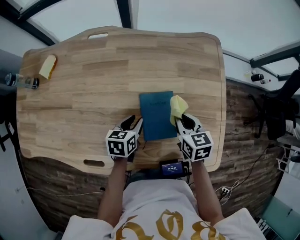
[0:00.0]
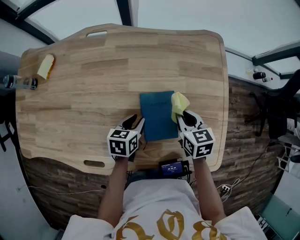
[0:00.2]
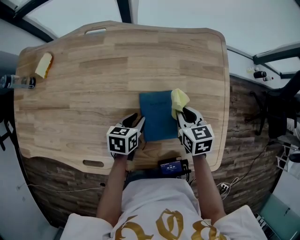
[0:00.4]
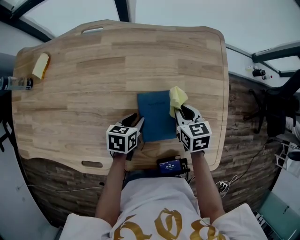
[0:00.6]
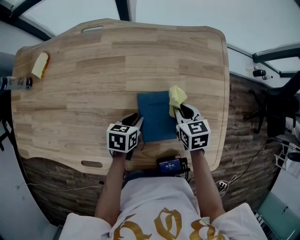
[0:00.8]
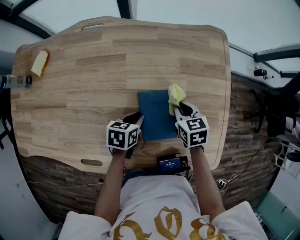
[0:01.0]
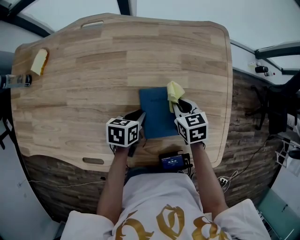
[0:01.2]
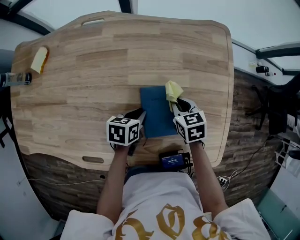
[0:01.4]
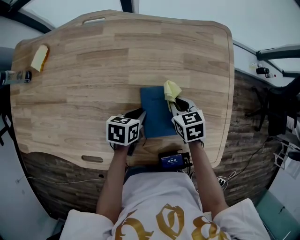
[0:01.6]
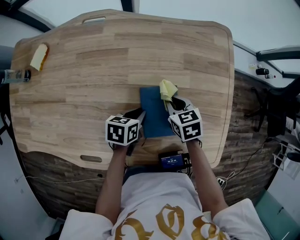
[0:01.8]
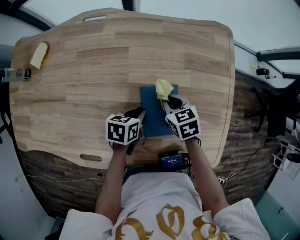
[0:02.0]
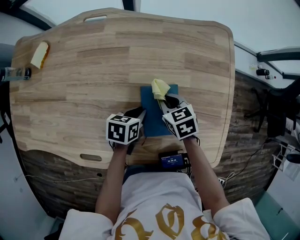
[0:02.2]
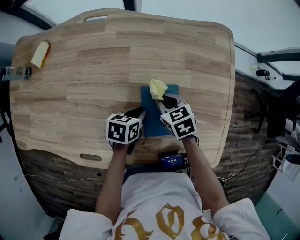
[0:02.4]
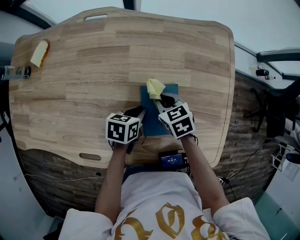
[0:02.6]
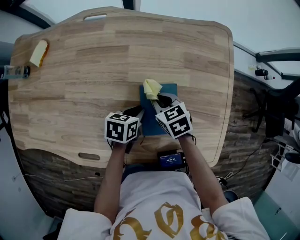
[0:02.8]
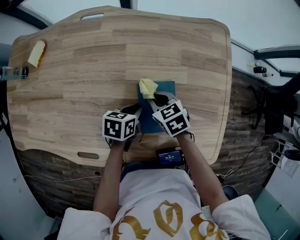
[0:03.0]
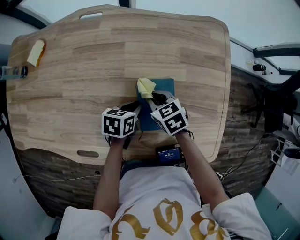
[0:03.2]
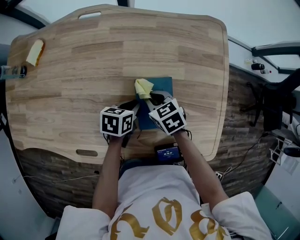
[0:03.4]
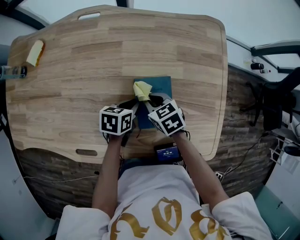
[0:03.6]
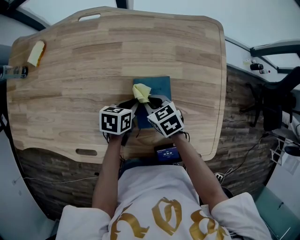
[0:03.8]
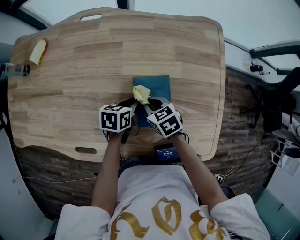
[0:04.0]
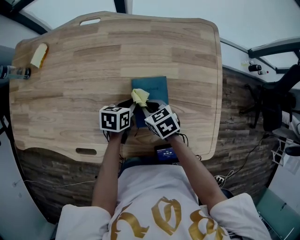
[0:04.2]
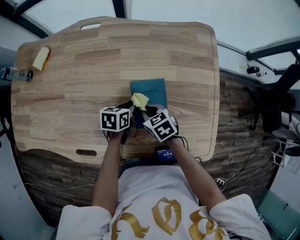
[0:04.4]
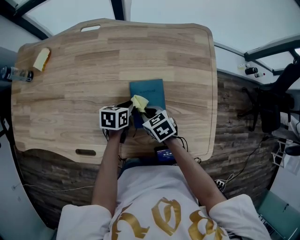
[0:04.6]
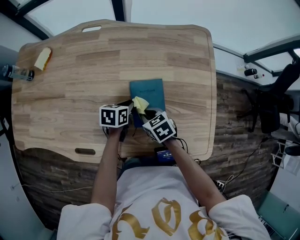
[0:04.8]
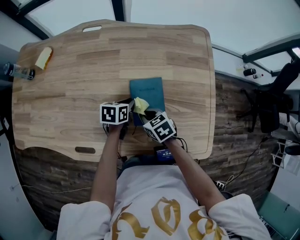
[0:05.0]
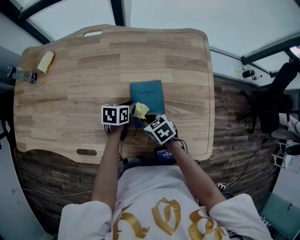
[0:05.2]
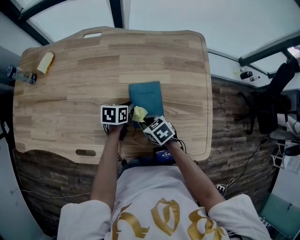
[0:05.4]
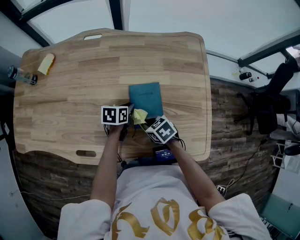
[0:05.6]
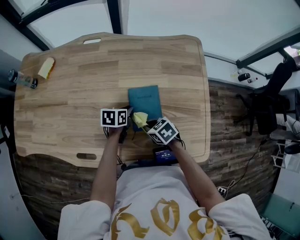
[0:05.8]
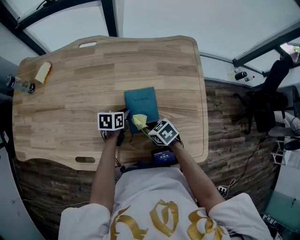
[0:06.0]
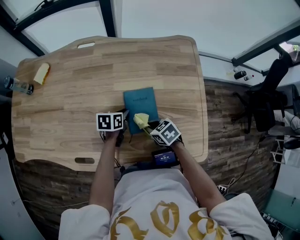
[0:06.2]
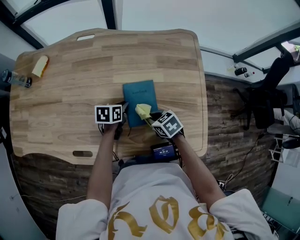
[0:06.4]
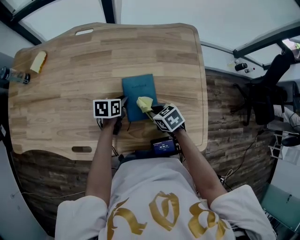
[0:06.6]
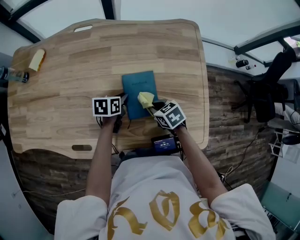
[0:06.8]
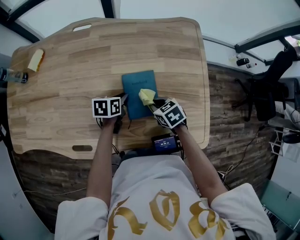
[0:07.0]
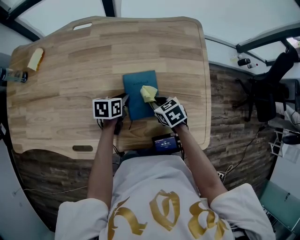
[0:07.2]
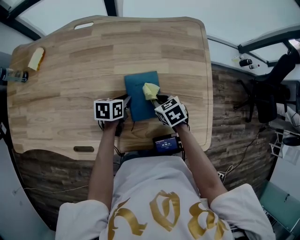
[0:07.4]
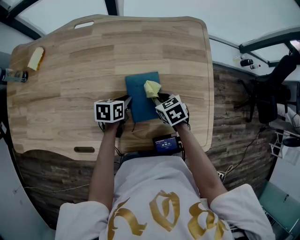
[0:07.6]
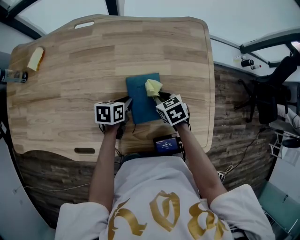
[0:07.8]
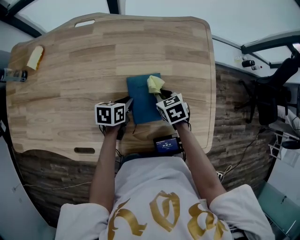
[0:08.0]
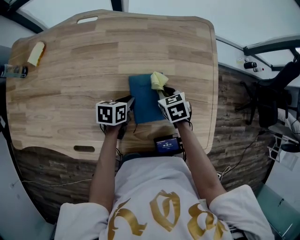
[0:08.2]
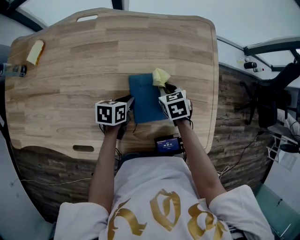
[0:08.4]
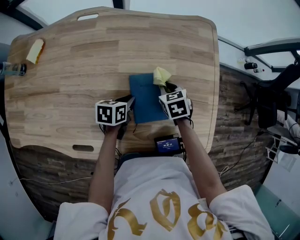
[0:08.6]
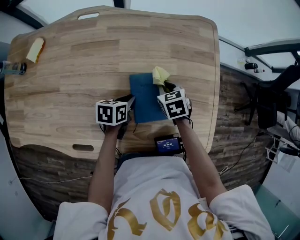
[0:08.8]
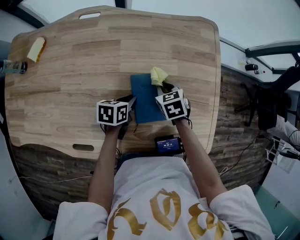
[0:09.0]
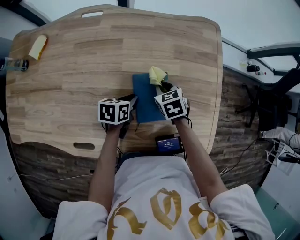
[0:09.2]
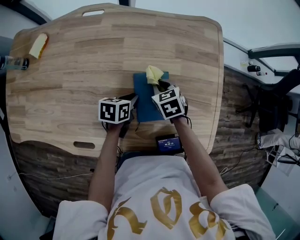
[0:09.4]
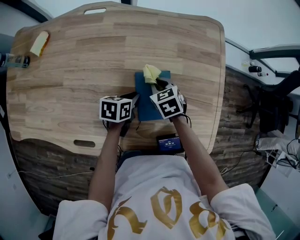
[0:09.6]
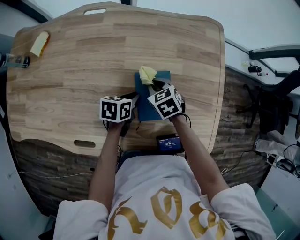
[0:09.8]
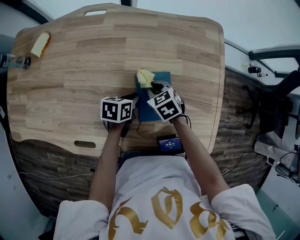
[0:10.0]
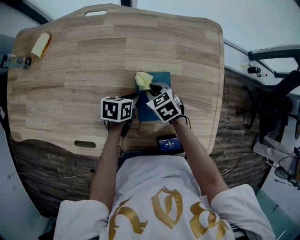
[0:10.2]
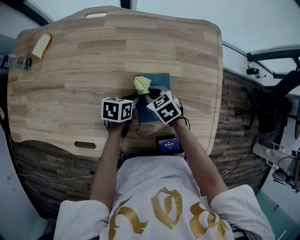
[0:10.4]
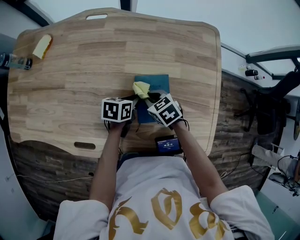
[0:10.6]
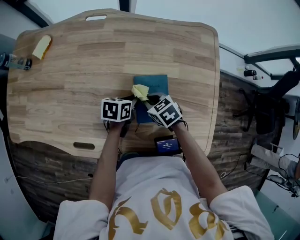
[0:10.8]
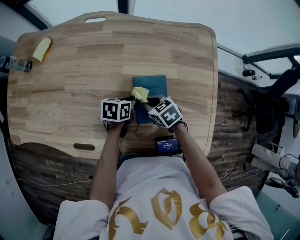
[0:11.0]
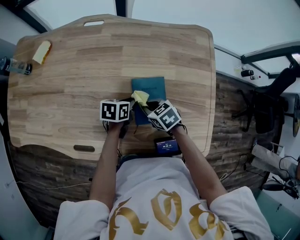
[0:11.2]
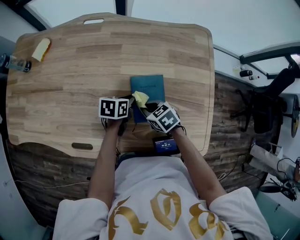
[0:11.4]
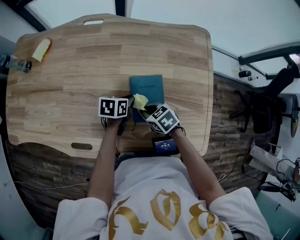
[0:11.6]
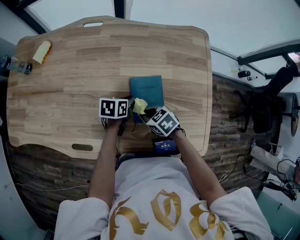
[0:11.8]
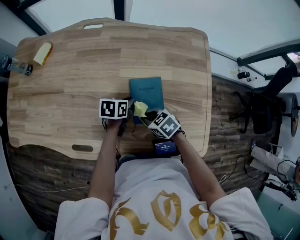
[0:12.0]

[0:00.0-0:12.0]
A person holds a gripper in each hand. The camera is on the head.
0:00.0 to 0:01.6: The right gripper travels downward by about 5 cm.
0:01.6 to 0:03.0: The right gripper travels to the left by some 10 cm.
0:03.0 to 0:04.4: The right gripper heads backward, covering about 5 cm.
0:04.4 to 0:06.0: The right gripper shifts some 5 cm backward.
0:06.0 to 0:07.6: The right gripper shifts about 10 cm forward and to the right.
0:07.6 to 0:09.0: The right gripper shifts roughly 5 cm forward.
0:09.0 to 0:10.4: The right gripper moves to the left and backward, roughly 10 cm.
0:10.4 to 0:12.0: The right gripper changes place by roughly 10 cm.

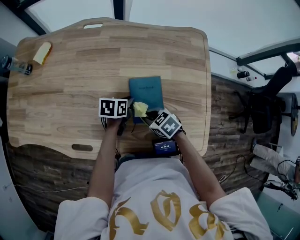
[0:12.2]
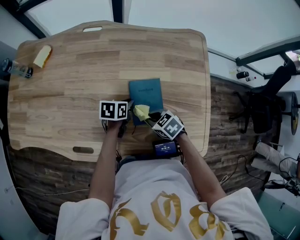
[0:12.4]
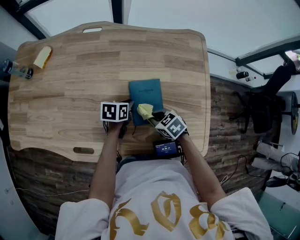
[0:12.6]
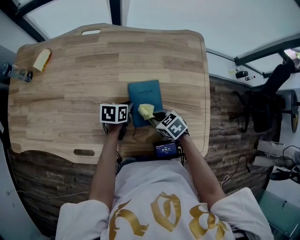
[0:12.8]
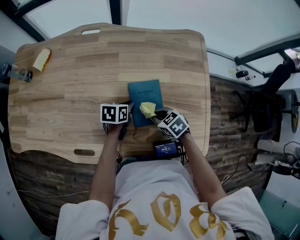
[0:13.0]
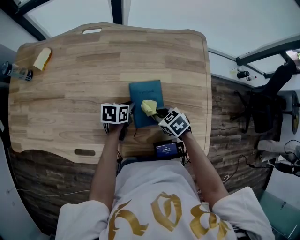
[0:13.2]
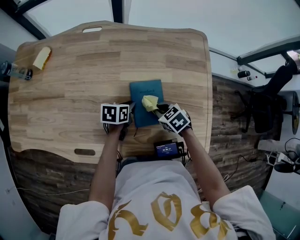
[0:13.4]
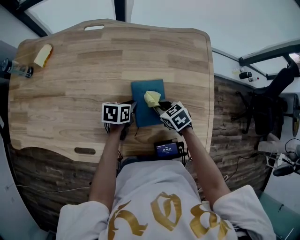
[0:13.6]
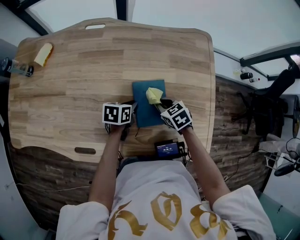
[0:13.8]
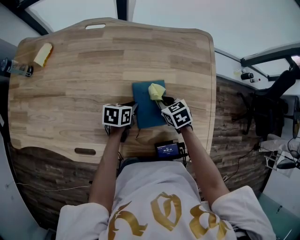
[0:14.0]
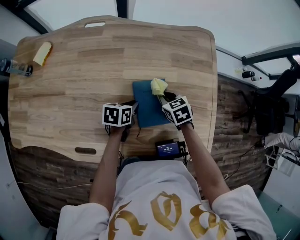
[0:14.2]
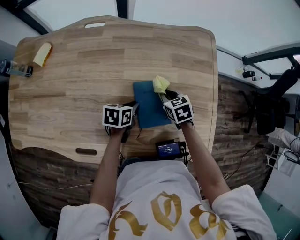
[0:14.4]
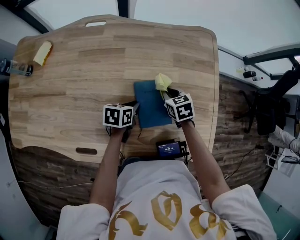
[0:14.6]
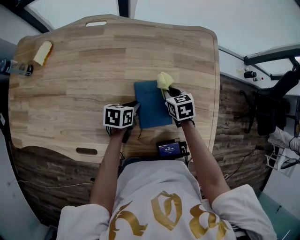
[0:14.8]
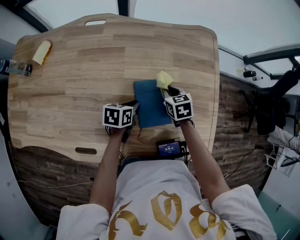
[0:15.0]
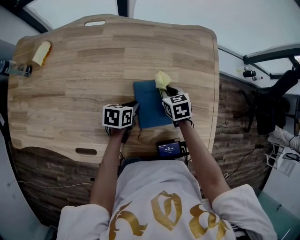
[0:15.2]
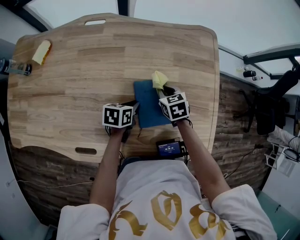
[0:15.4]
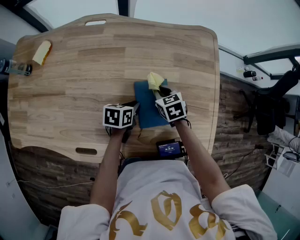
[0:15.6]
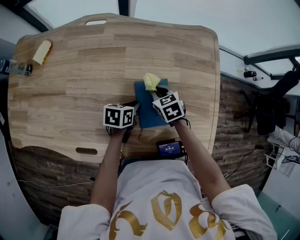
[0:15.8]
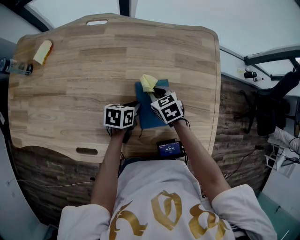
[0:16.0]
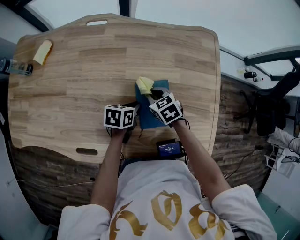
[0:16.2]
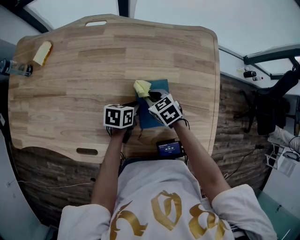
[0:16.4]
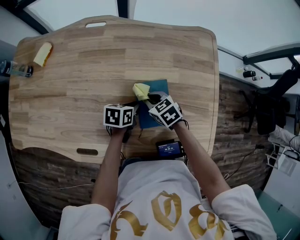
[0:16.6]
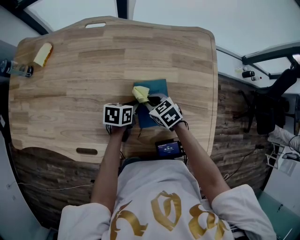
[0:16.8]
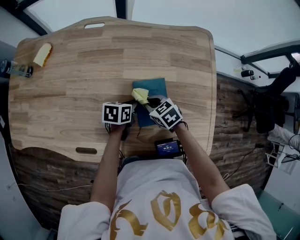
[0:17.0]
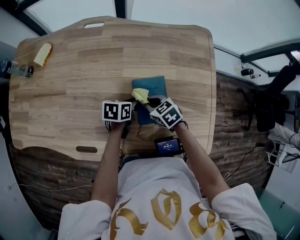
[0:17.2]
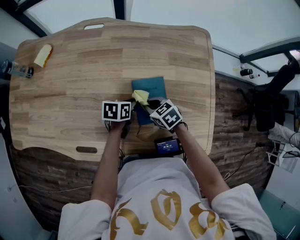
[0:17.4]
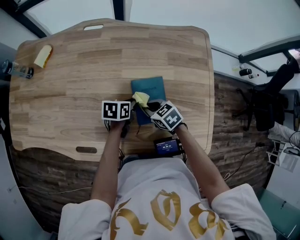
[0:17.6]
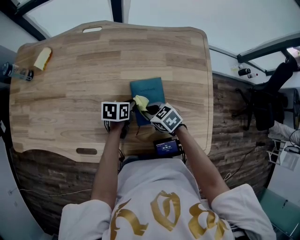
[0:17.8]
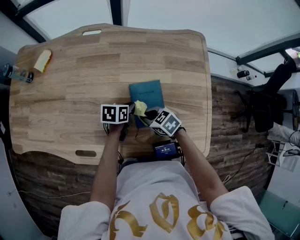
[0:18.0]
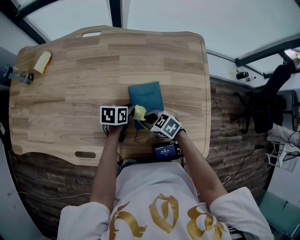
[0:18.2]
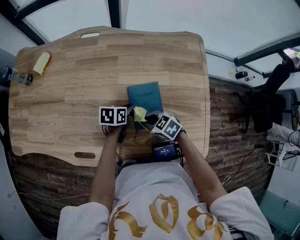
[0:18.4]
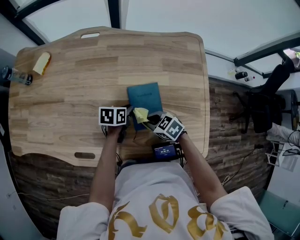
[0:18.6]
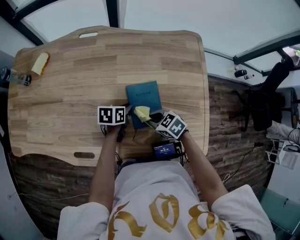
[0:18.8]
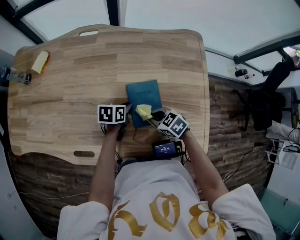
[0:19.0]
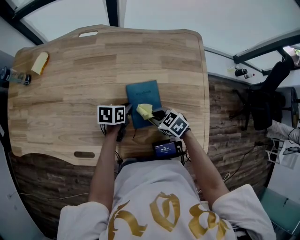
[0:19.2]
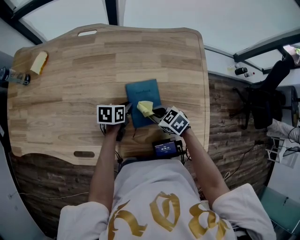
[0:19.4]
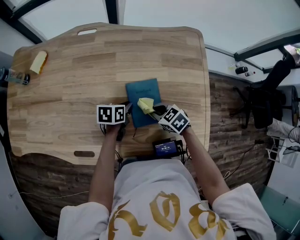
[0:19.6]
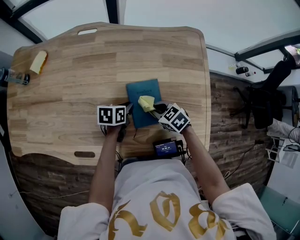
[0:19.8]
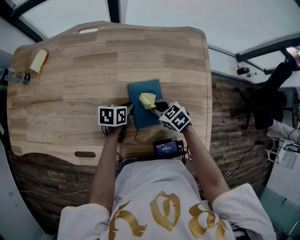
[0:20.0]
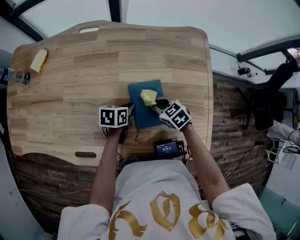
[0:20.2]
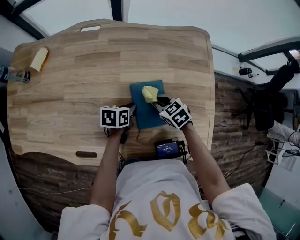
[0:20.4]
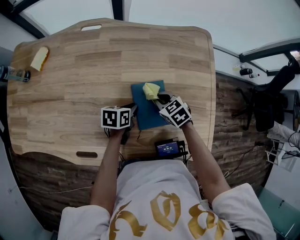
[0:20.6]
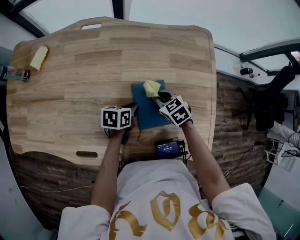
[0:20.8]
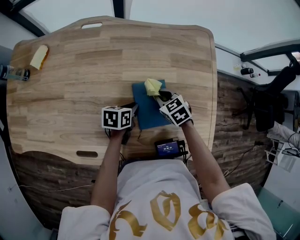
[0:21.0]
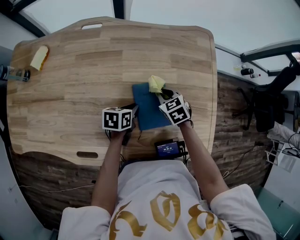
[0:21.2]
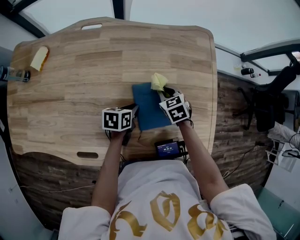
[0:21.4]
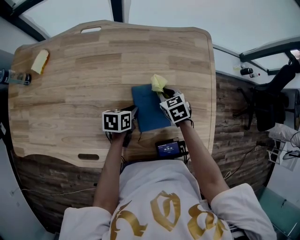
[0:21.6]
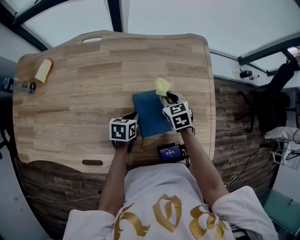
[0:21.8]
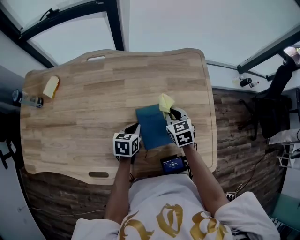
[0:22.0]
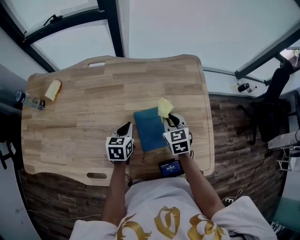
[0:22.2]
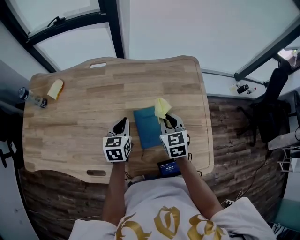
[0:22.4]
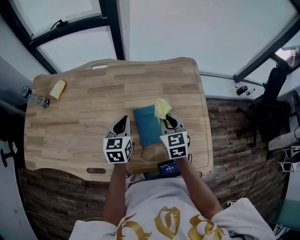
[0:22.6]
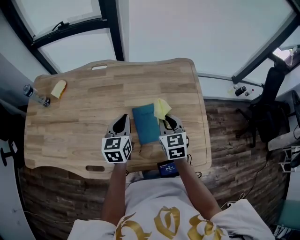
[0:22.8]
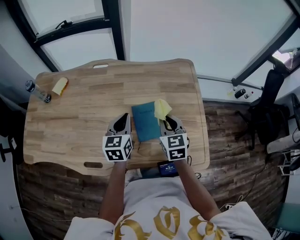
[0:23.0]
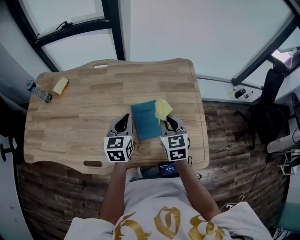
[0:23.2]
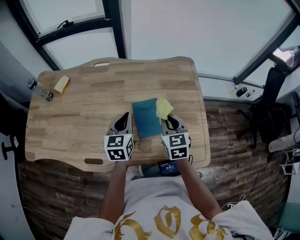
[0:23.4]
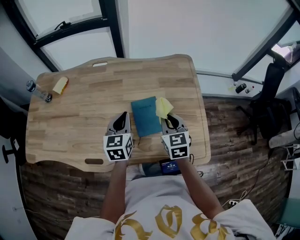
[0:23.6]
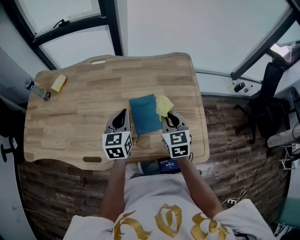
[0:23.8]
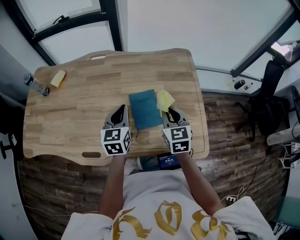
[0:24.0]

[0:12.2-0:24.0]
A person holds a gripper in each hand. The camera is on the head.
0:12.2 to 0:13.6: The right gripper shifts by about 10 cm.
0:13.6 to 0:15.2: The right gripper shifts some 10 cm forward, and turns by about 20 degrees.
0:15.2 to 0:16.6: The right gripper goes about 10 cm to the left and backward, and changes its angle by approximately 20 degrees.
0:16.6 to 0:18.2: The right gripper shifts by roughly 10 cm.
0:18.2 to 0:19.6: The right gripper ends up some 5 cm from where it was.
0:19.6 to 0:21.0: The right gripper shifts roughly 10 cm forward.
0:21.0 to 0:22.6: Both grippers travel together upward, some 15 cm. The left gripper swivels roughly 40 degrees. Meanwhile the right gripper changes its angle by some 40 degrees.
0:22.6 to 0:24.0: The left gripper changes place by some 5 cm. The right gripper heads backward, covering about 5 cm.
